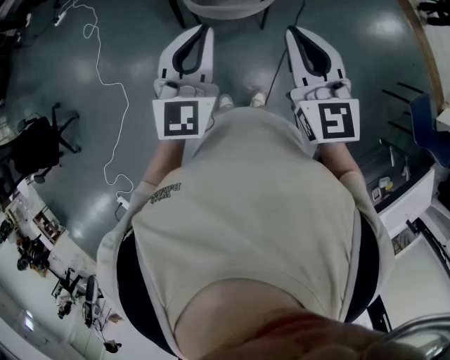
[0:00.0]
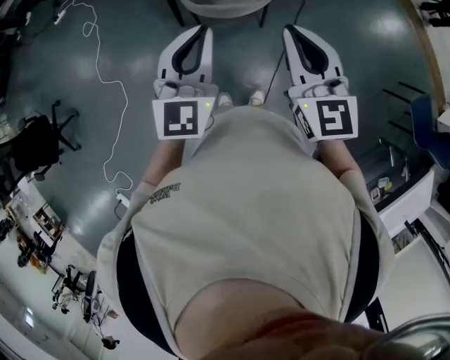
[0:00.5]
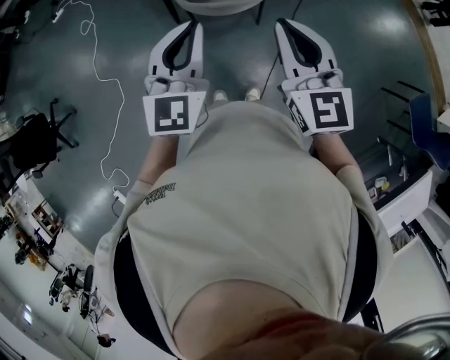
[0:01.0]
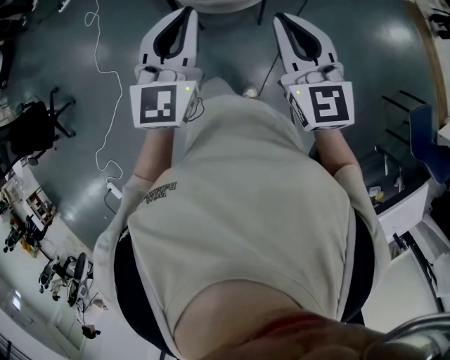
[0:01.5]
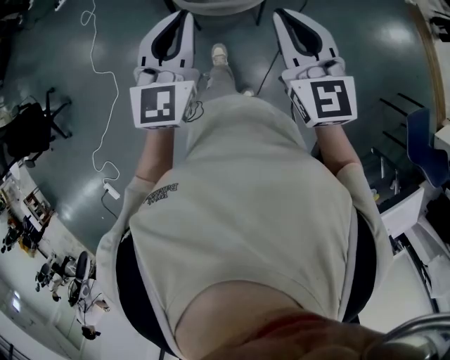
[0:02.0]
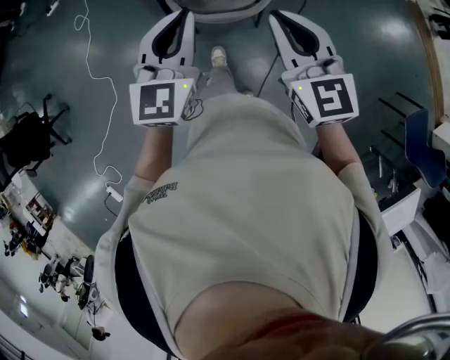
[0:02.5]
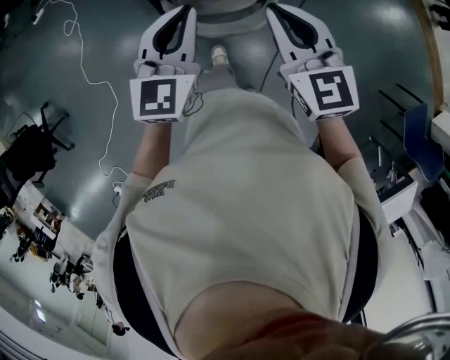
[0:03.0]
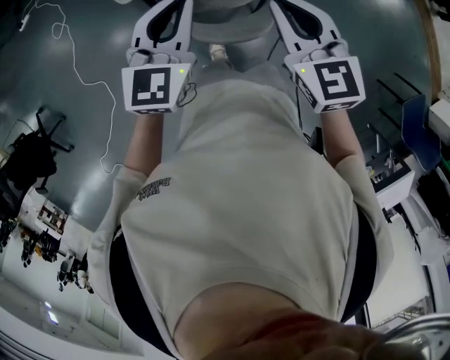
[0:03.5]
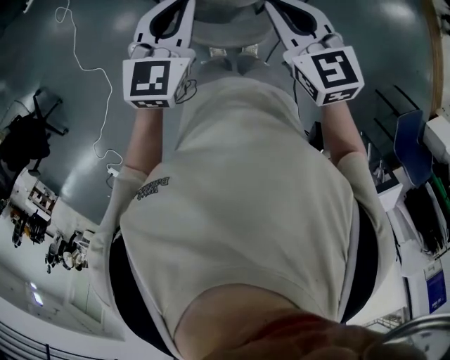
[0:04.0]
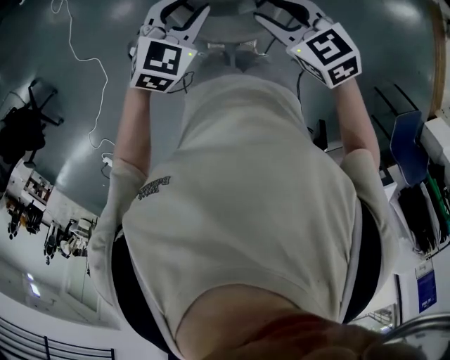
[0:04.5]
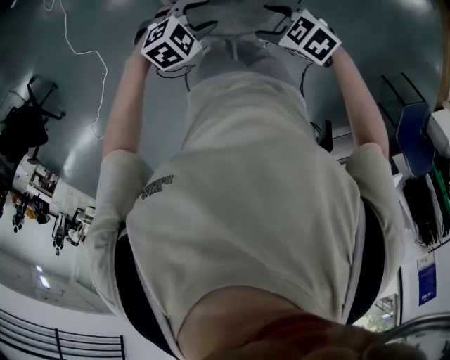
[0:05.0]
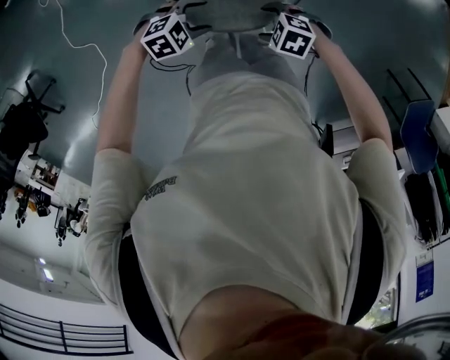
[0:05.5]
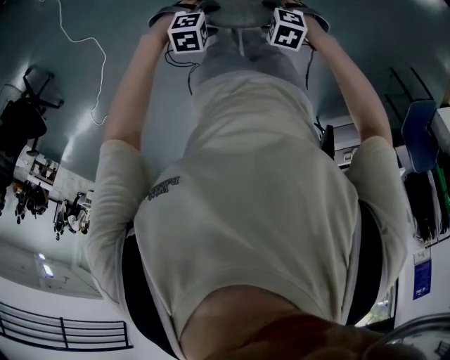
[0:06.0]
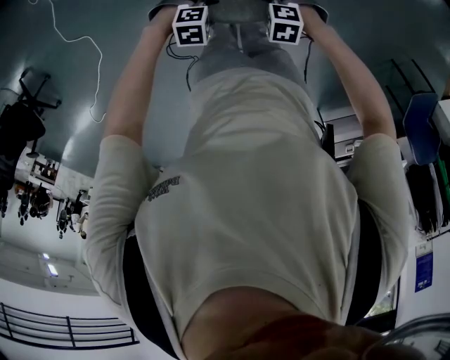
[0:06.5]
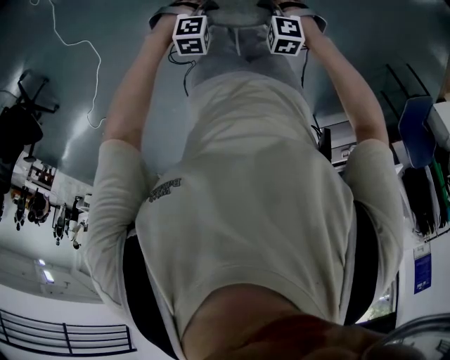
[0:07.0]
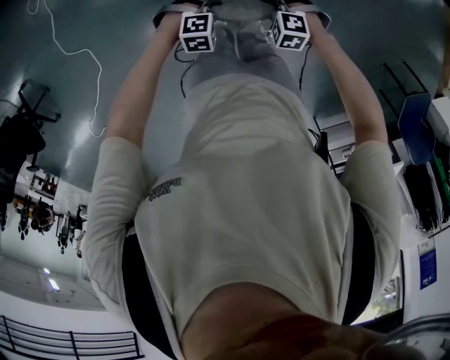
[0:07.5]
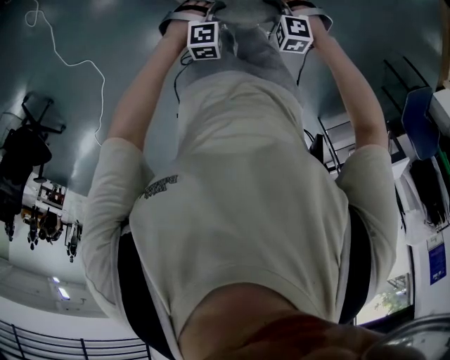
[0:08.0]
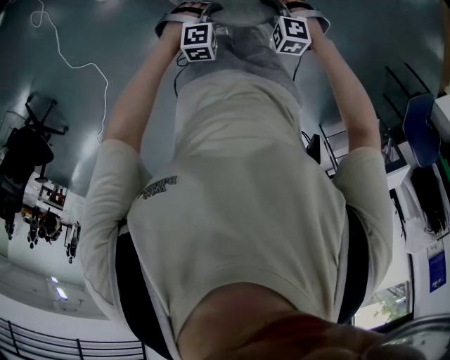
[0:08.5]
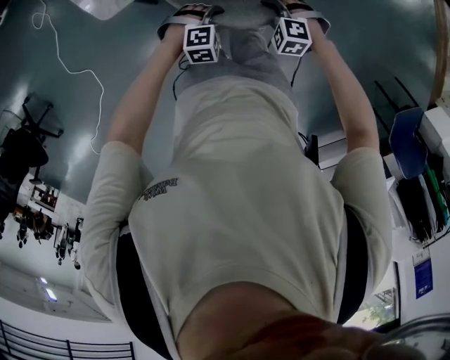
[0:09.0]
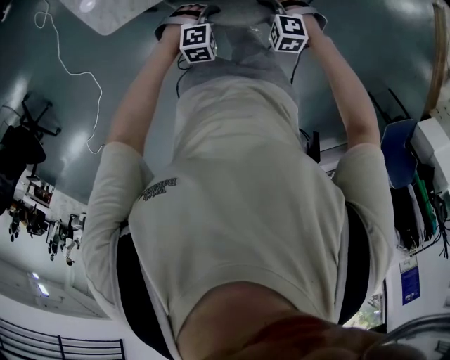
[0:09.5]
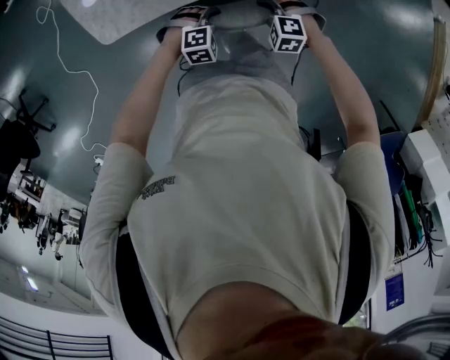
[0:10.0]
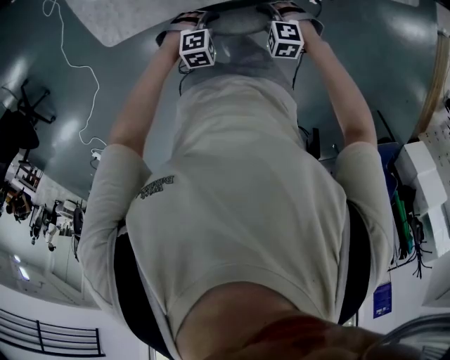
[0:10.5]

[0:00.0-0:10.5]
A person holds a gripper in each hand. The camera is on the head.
0:00.0 to 0:02.0: The grippers both shift to the right and forward by approximately 10 cm.
0:02.0 to 0:04.0: Both grippers move forward, about 35 cm. The right gripper swivels approximately 20 degrees.
0:04.0 to 0:06.5: The grippers both shift downward by roughly 40 cm. The right gripper tilts its fingers approximately 50 degrees downward, and opens up, while the left gripper points its fingers some 40 degrees further downward, and opens its fingers.
0:06.5 to 0:08.5: The right gripper ends up roughly 10 cm from where it was, and turns by about 20 degrees; the left gripper ends up some 10 cm from where it was, turns by some 20 degrees, and closes.
0:08.5 to 0:10.5: The right gripper changes place by approximately 25 cm, while the left gripper shifts by about 25 cm.

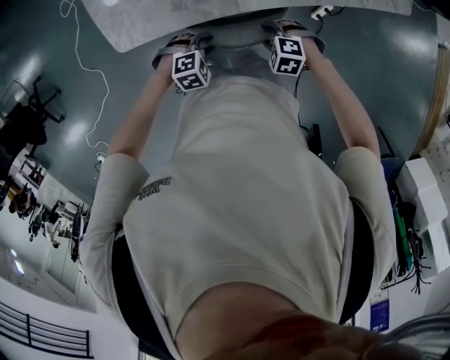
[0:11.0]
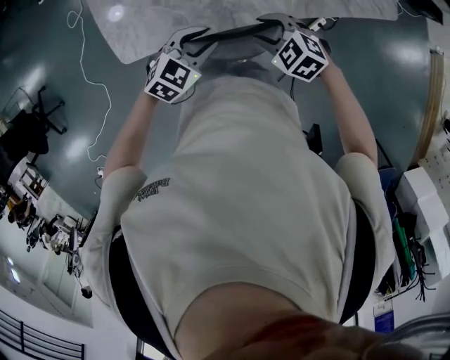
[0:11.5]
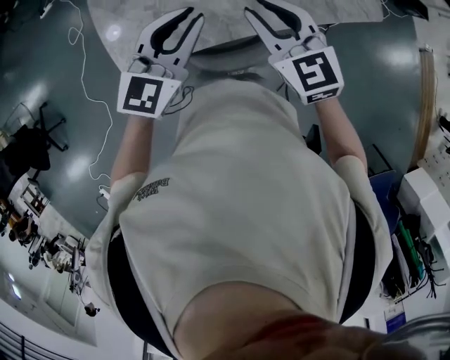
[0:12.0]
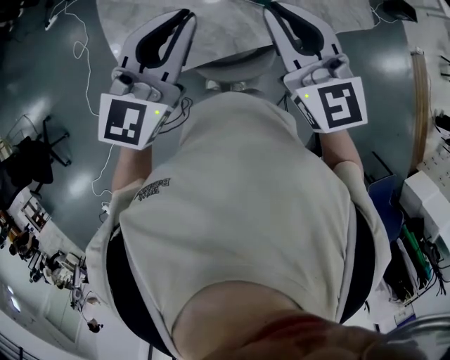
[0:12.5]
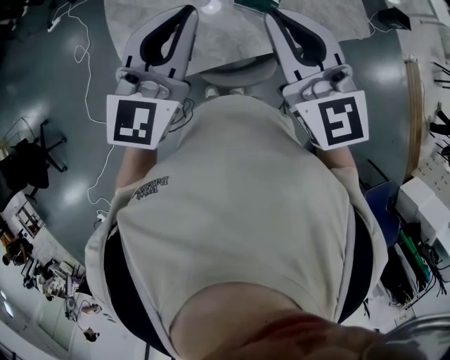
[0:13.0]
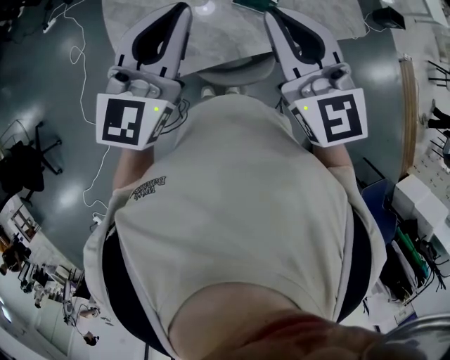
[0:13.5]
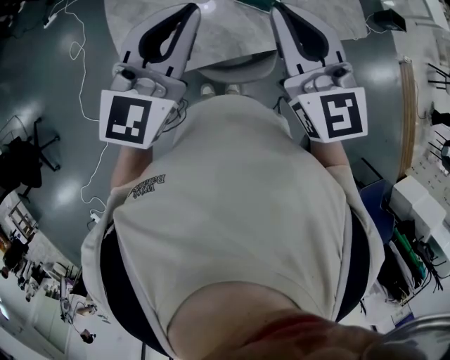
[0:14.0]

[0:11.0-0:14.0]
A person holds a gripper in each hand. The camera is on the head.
0:11.0 to 0:12.5: The two grippers go about 50 cm upward. The left gripper points its fingers approximately 70 degrees further upward, and closes up; the right gripper tips its fingers upward by some 60 degrees, and closes up.
0:12.5 to 0:14.0: The right gripper changes place by some 5 cm. The left gripper ends up some 5 cm from where it was.

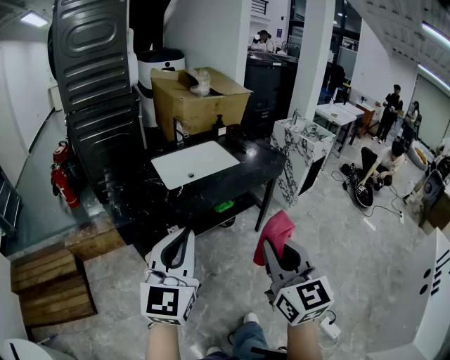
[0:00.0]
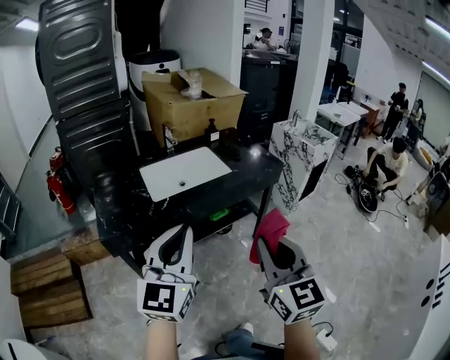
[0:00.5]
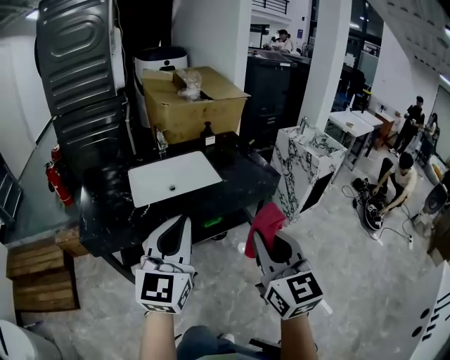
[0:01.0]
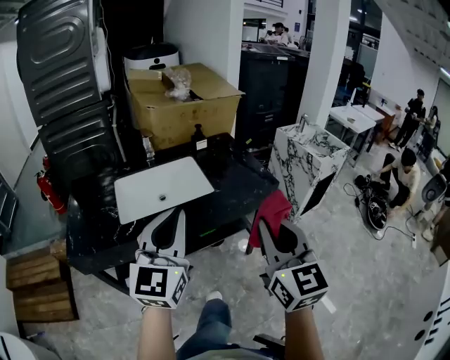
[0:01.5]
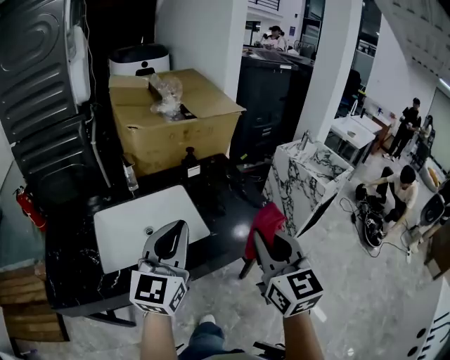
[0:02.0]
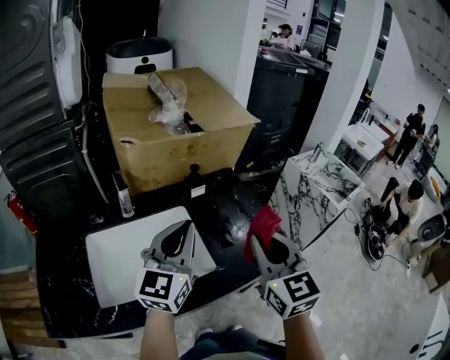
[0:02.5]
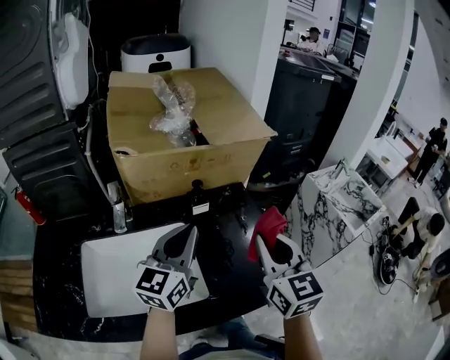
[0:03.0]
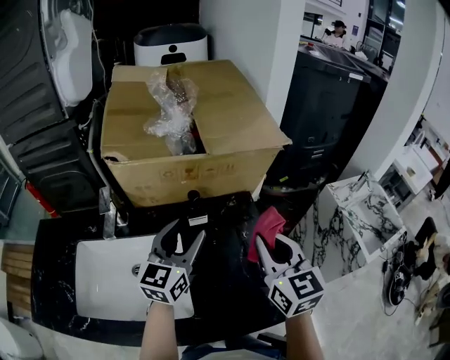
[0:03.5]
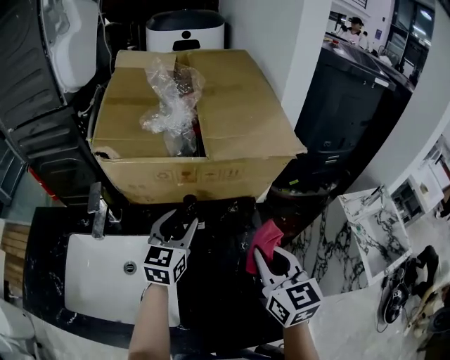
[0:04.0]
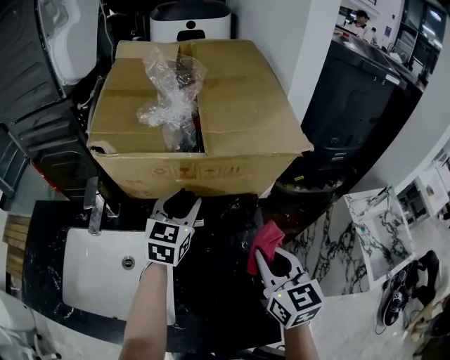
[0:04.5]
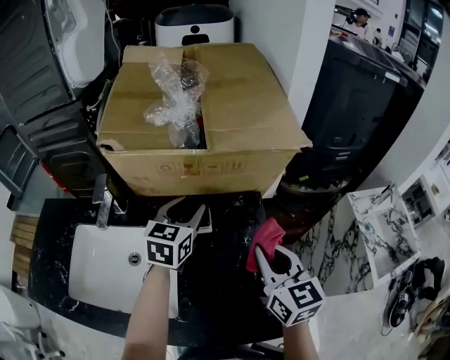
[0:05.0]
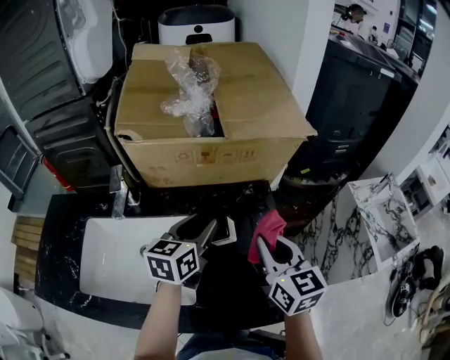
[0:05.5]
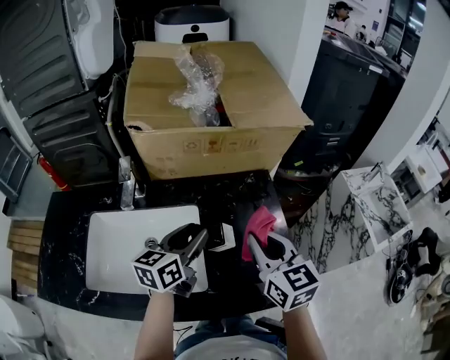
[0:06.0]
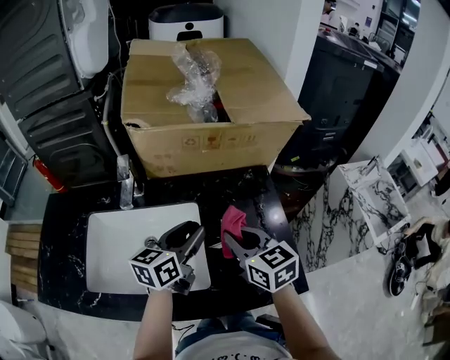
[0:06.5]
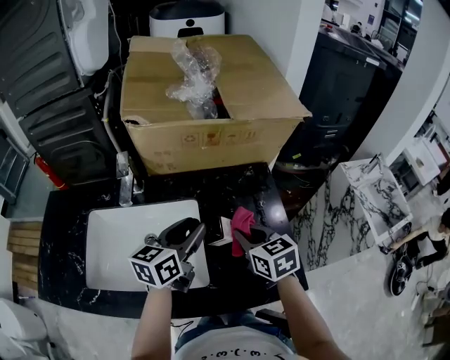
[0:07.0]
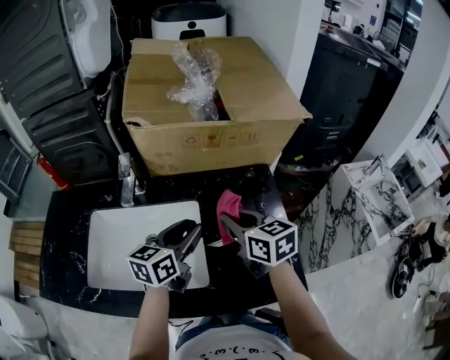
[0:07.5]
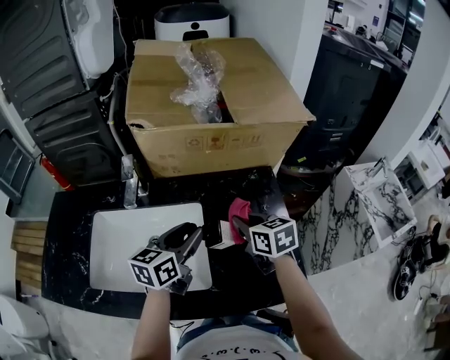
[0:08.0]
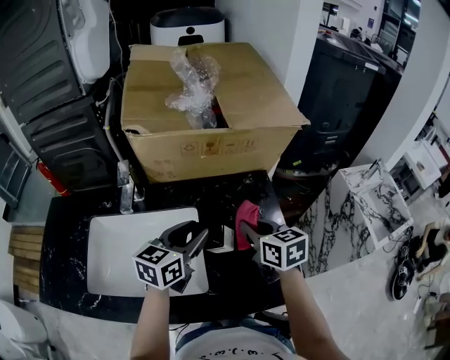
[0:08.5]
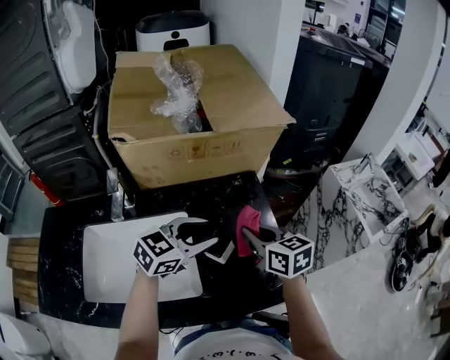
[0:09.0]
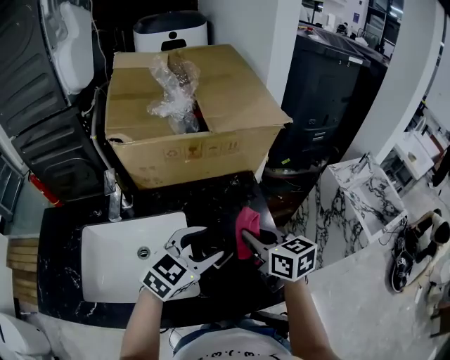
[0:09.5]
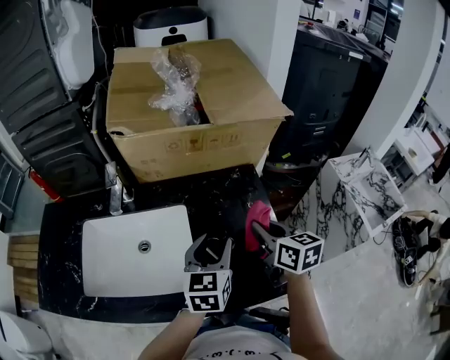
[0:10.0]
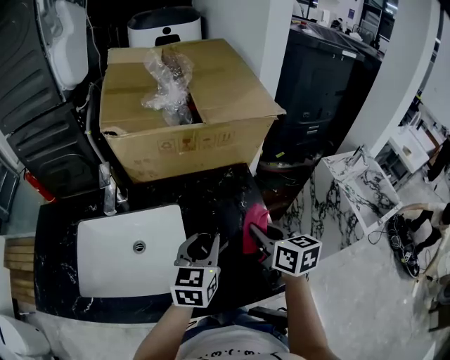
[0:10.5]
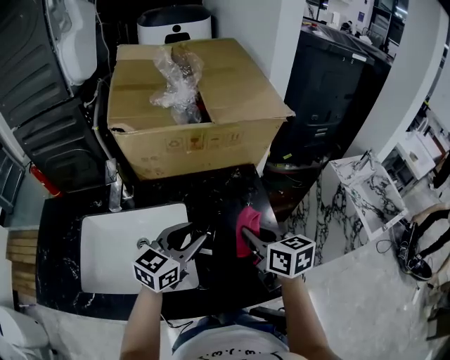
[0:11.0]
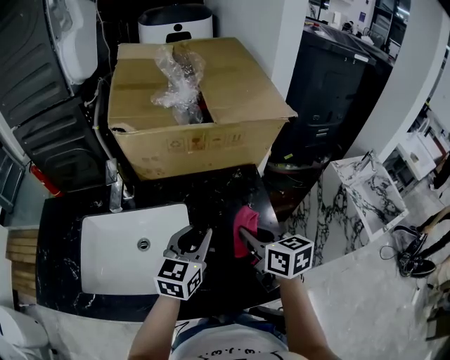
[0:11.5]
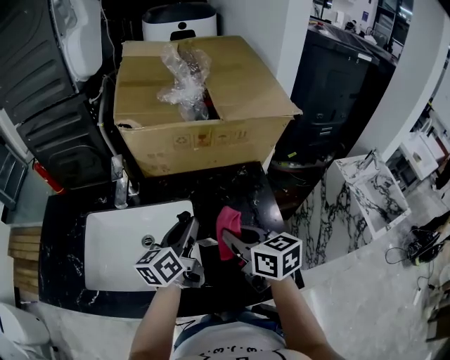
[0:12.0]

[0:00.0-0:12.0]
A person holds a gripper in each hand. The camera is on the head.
0:00.0 to 0:02.0: The two grippers travel together, forward and to the right, about 50 cm.
0:02.0 to 0:04.0: The pair of grippers is taken forward, roughly 40 cm. The right gripper changes its angle by about 30 degrees. The left gripper rotates some 30 degrees, and opens its fingers.
0:04.0 to 0:06.0: The right gripper travels to the left and backward by approximately 10 cm, while the left gripper moves backward, about 15 cm, and changes its angle by approximately 30 degrees.
0:06.0 to 0:08.0: The right gripper swings up and down, roughly 10 cm each way, with 2 reversals, and rotates about 20 degrees.
0:08.0 to 0:10.0: Both grippers travel together to the right, approximately 10 cm.
0:10.0 to 0:12.0: The right gripper travels to the left by about 10 cm. Meanwhile the left gripper is displaced to the left and forward by roughly 10 cm, rotates roughly 30 degrees, and closes its fingers.

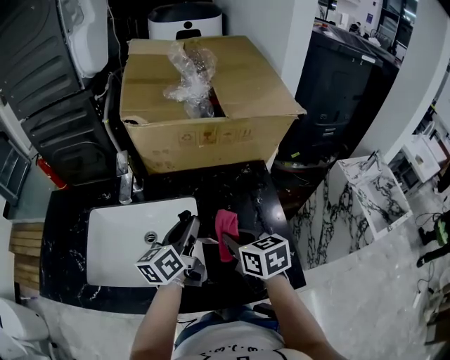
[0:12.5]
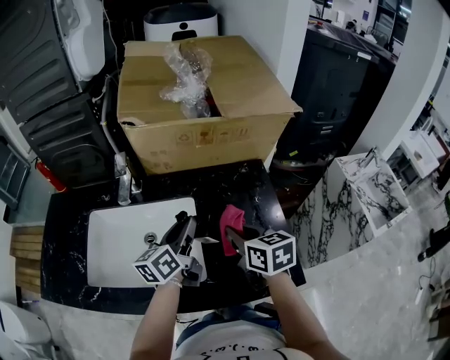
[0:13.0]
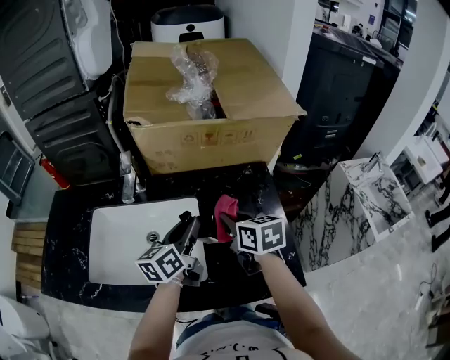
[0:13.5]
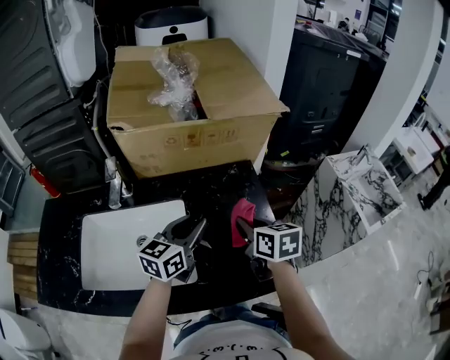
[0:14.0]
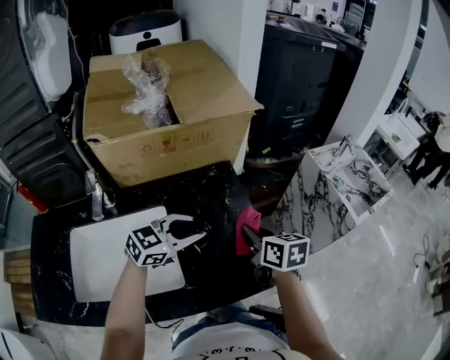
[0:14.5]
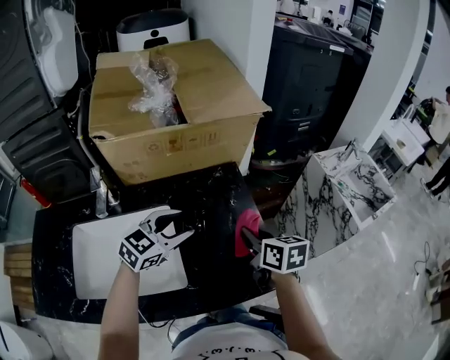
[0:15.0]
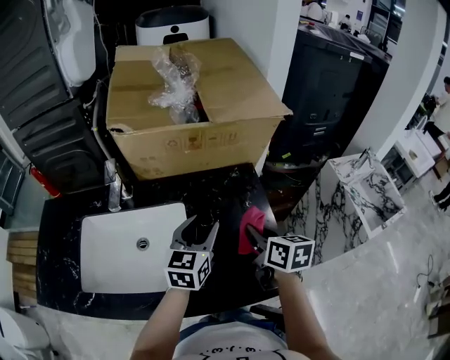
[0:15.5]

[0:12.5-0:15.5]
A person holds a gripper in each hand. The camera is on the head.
0:12.5 to 0:14.0: The grippers both shift to the right by about 5 cm. The left gripper turns by some 30 degrees.
0:14.0 to 0:15.5: The left gripper opens.
